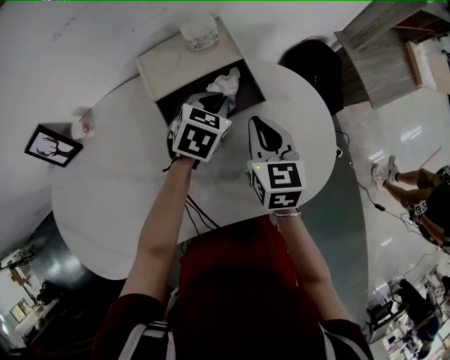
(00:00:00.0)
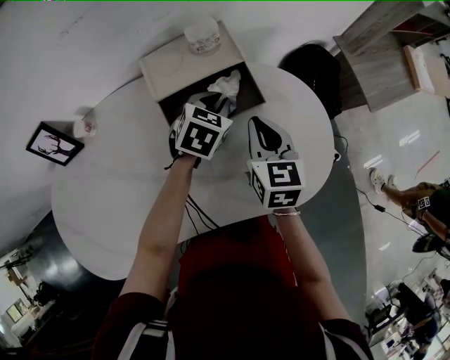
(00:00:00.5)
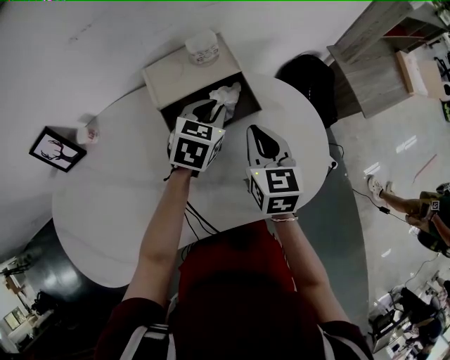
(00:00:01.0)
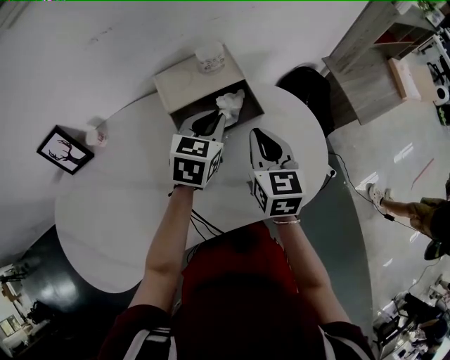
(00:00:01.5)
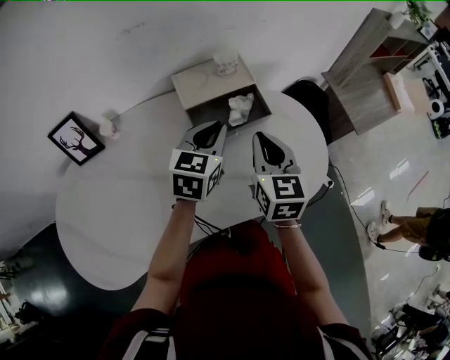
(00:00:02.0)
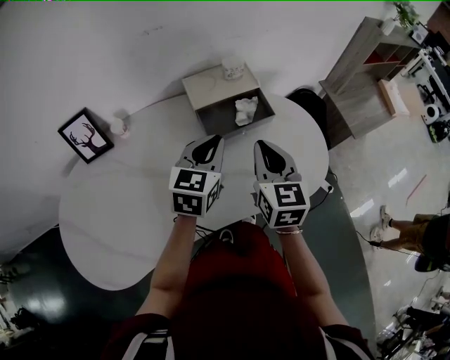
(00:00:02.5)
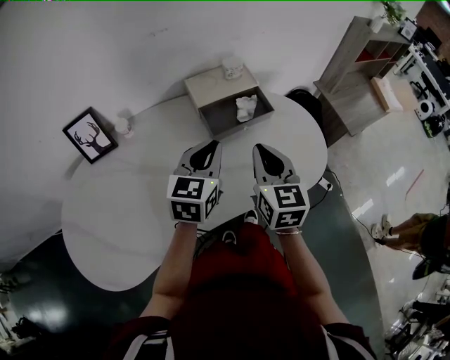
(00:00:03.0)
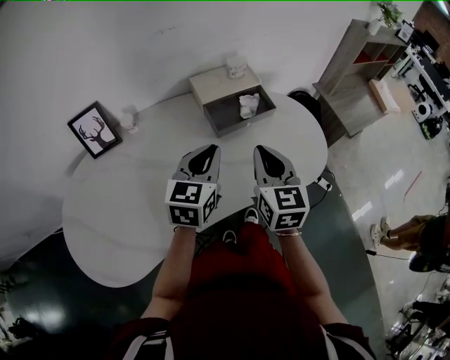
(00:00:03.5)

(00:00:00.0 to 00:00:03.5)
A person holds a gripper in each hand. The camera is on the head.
00:00:00.0 - 00:00:02.0: Both grippers travel together upward and backward, some 15 cm. The left gripper changes its angle by about 30 degrees.
00:00:02.0 - 00:00:03.5: The left gripper shifts some 15 cm backward and to the left, while the right gripper shifts approximately 10 cm backward.

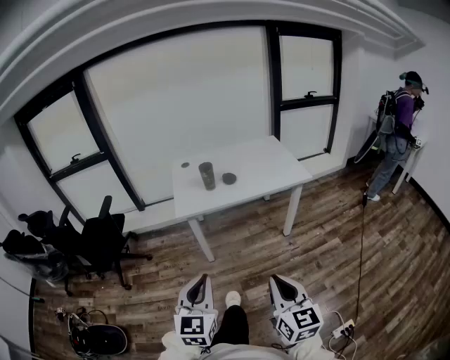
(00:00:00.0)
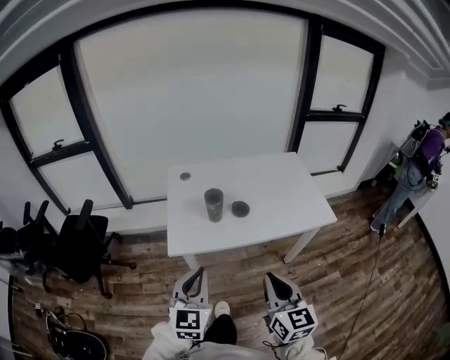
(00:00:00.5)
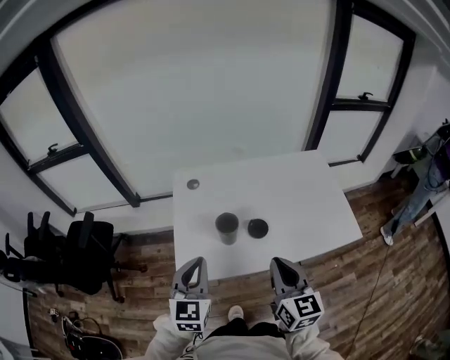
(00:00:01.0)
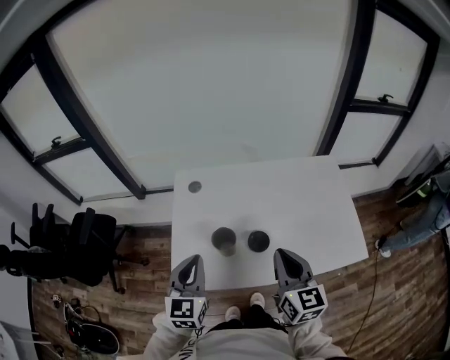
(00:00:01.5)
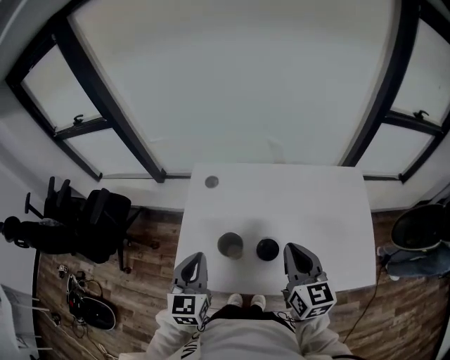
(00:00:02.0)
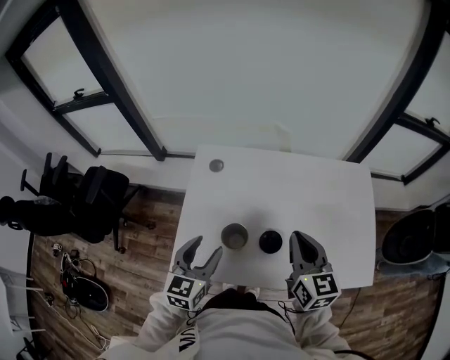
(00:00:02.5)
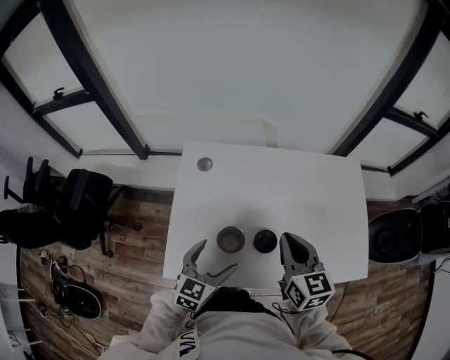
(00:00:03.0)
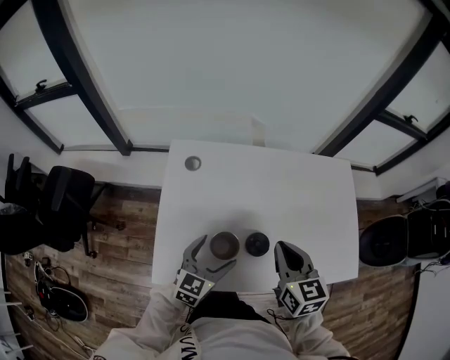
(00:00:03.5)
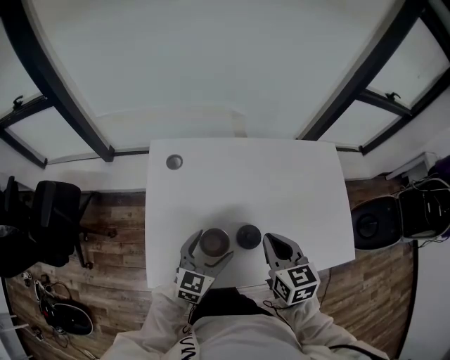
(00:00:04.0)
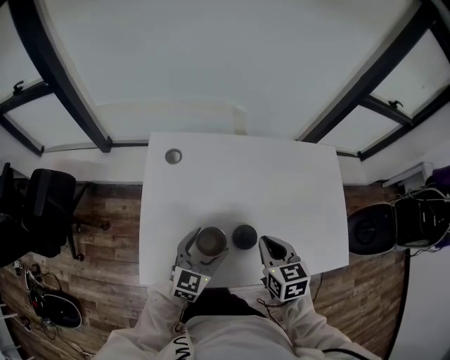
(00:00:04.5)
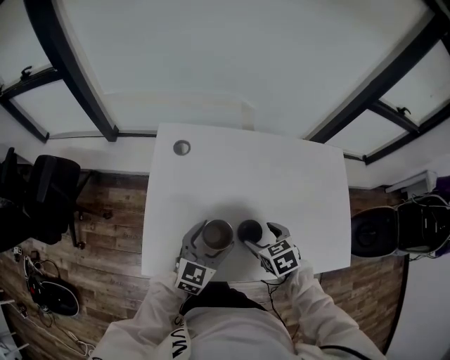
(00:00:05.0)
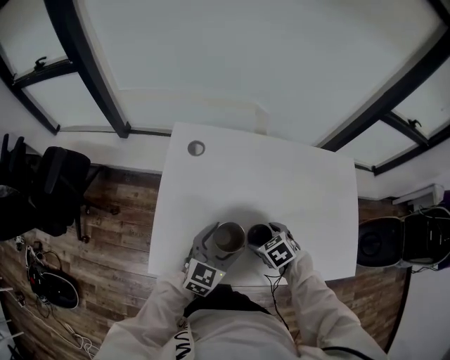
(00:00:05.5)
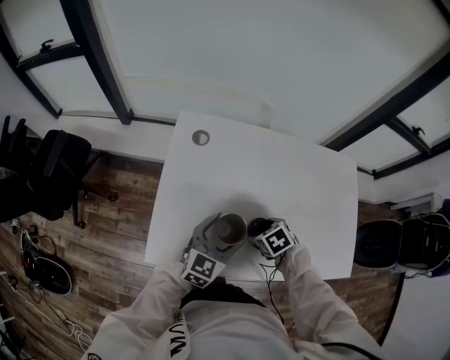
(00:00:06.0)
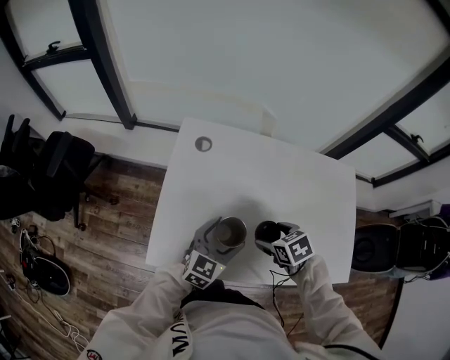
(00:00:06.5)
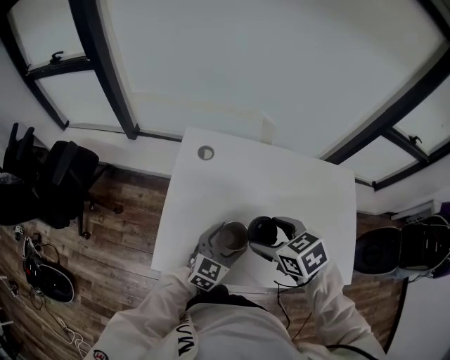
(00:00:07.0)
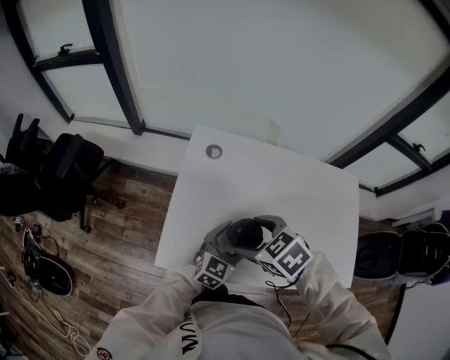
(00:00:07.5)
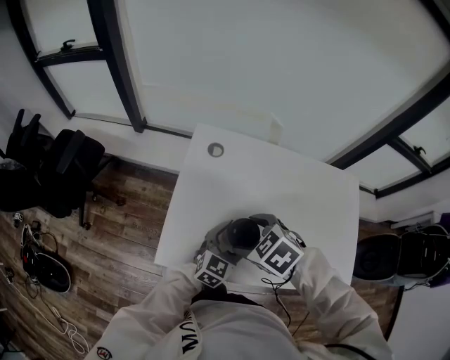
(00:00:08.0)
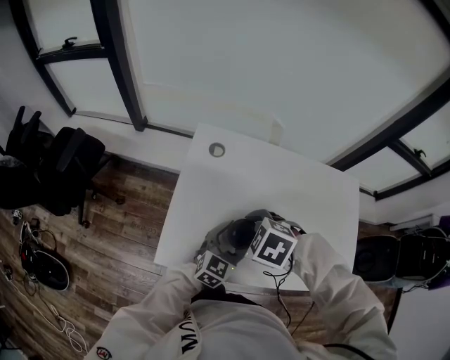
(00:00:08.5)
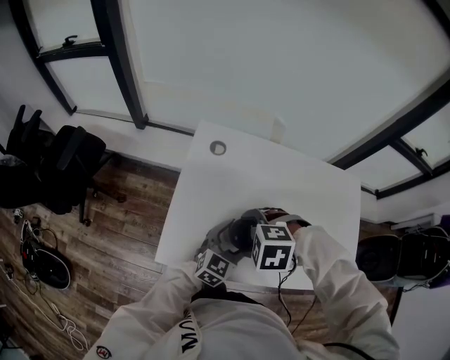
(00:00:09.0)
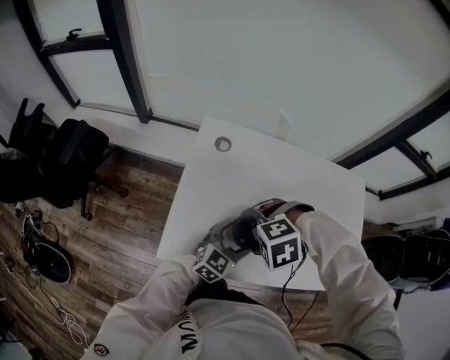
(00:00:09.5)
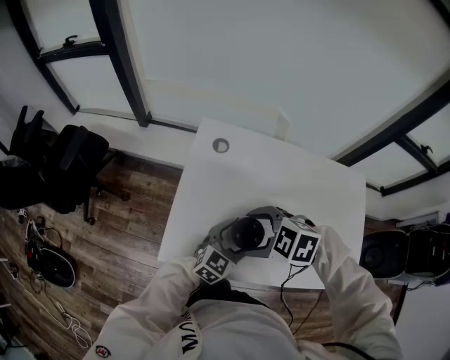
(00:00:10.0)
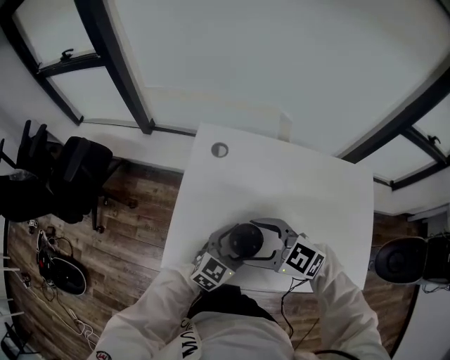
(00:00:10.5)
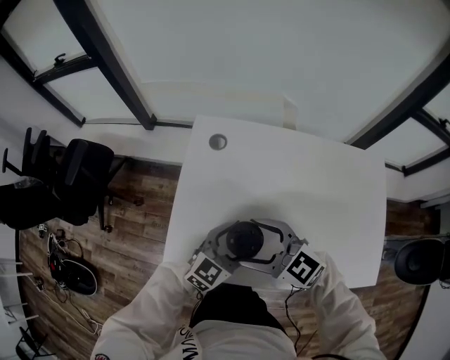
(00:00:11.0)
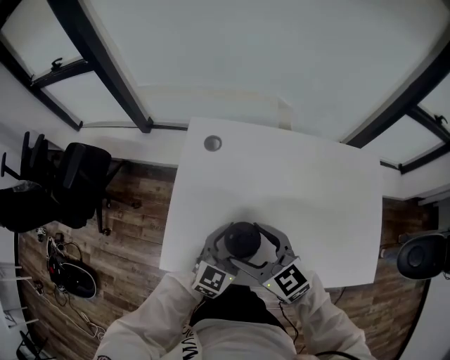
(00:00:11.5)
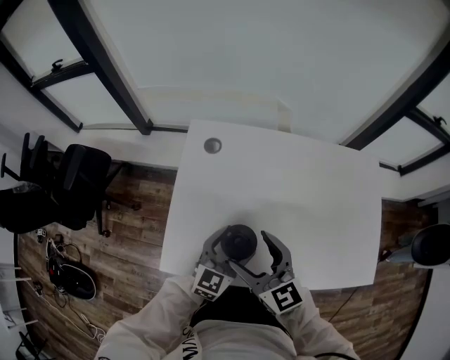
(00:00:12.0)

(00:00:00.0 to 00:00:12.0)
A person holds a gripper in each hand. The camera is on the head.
00:00:00.0 - 00:00:02.0: The two grippers travel together, forward, some 80 cm. The left gripper rotates approximately 20 degrees.
00:00:02.0 - 00:00:04.0: The left gripper travels downward, forward and to the right by about 20 cm, swivels approximately 30 degrees, and opens. The right gripper is displaced downward and to the left by approximately 10 cm, and changes its angle by roughly 20 degrees.
00:00:04.0 - 00:00:06.0: The right gripper shifts roughly 20 cm downward, tilts its fingers about 40 degrees downward, and opens up.
00:00:06.0 - 00:00:08.0: The right gripper travels upward by about 20 cm, and turns by about 30 degrees.
00:00:08.0 - 00:00:10.0: The right gripper swivels about 30 degrees.
00:00:10.0 - 00:00:12.0: The right gripper tips its fingers upward by about 50 degrees.

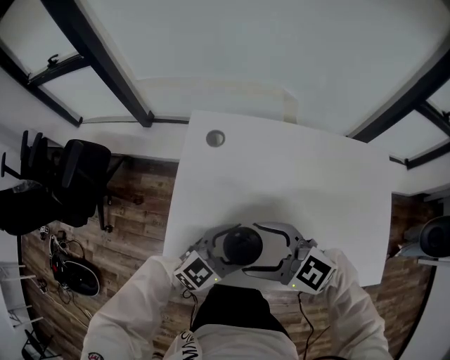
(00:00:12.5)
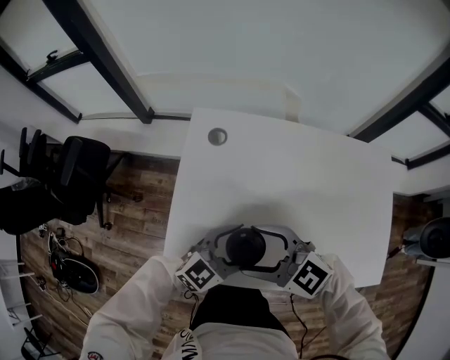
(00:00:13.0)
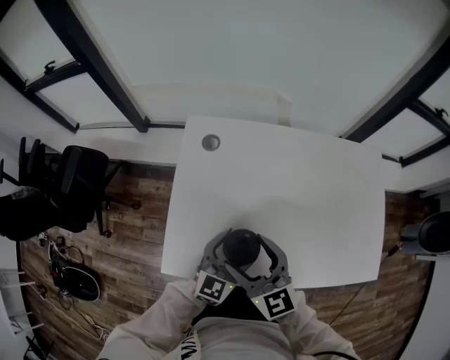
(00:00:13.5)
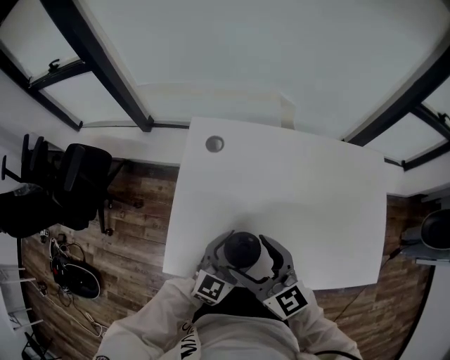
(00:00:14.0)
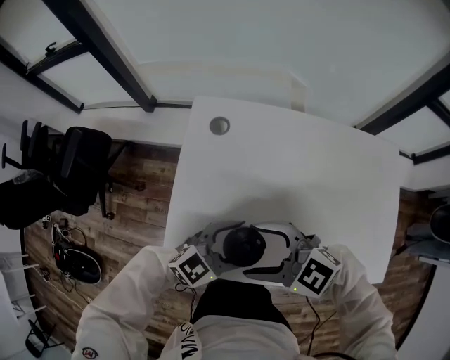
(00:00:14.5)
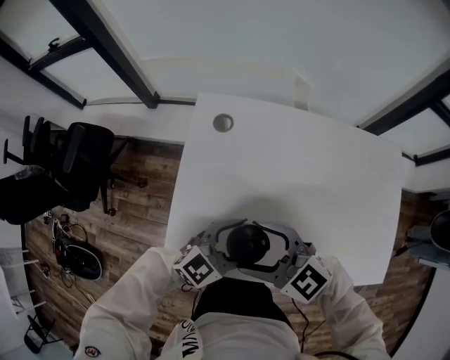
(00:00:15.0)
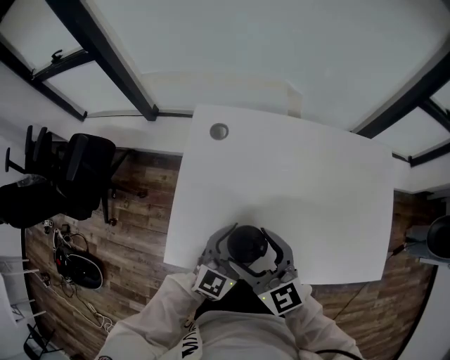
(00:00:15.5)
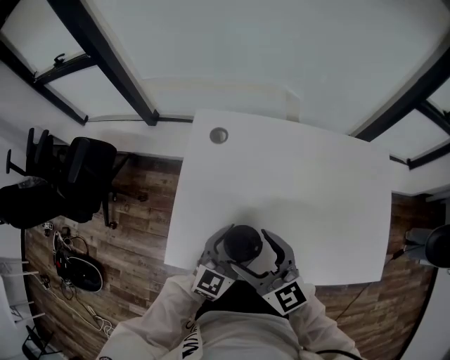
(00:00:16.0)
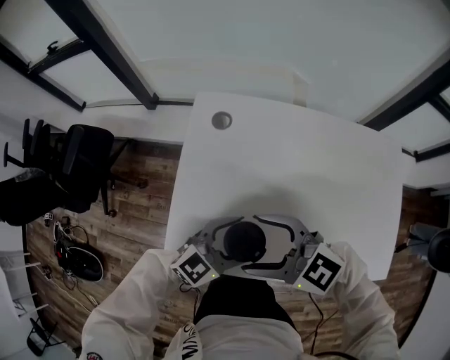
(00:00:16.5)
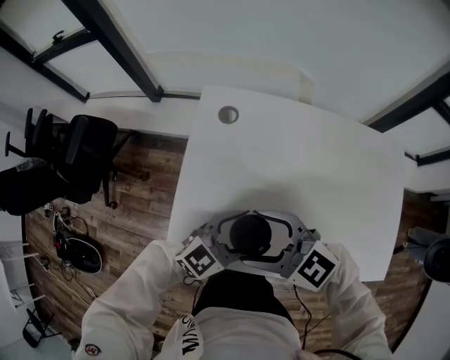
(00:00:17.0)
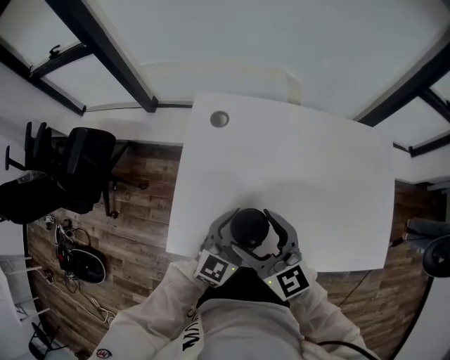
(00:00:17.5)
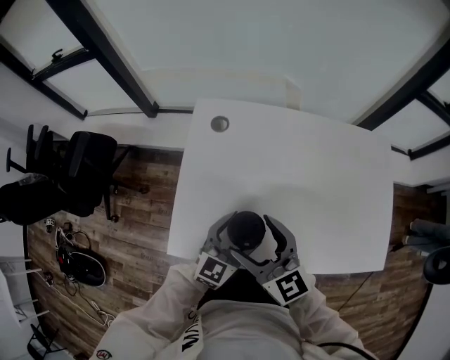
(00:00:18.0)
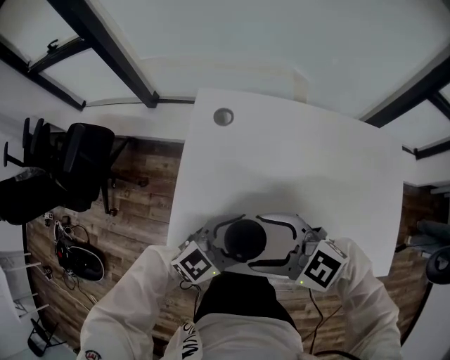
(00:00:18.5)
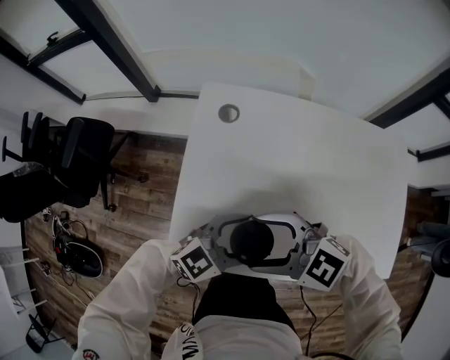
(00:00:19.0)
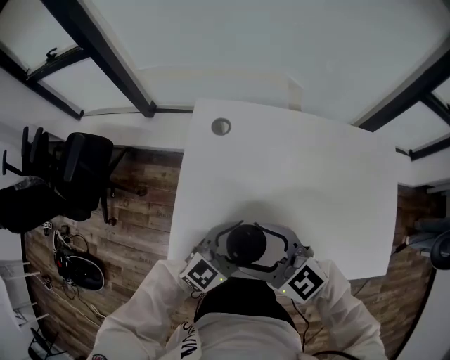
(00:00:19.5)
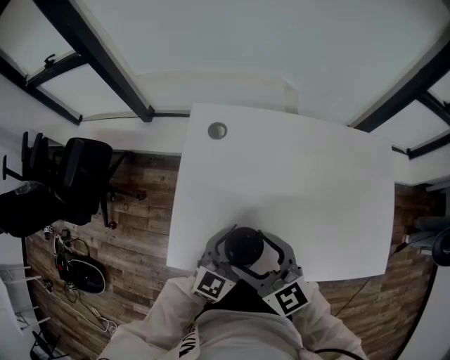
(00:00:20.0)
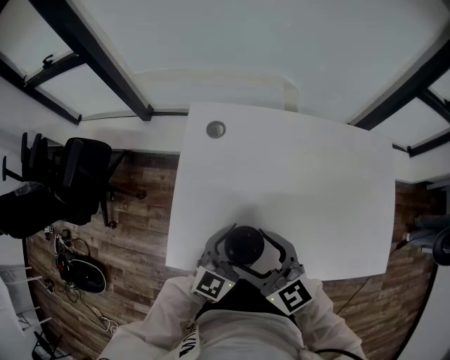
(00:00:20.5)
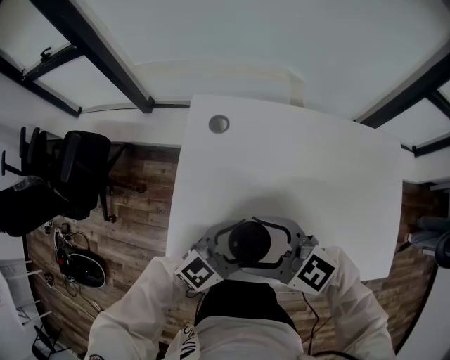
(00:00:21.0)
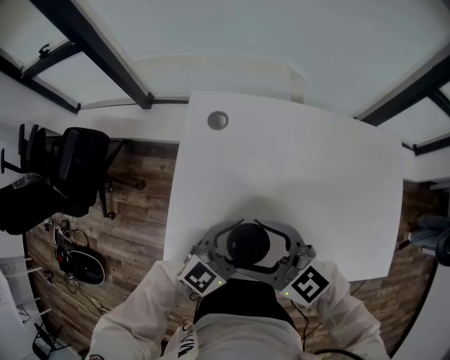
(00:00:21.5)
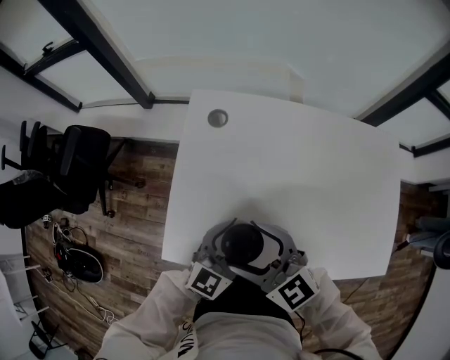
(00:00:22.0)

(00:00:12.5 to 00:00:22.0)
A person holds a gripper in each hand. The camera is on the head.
00:00:16.5 - 00:00:18.0: The right gripper turns by some 40 degrees, while the left gripper changes its angle by about 20 degrees.

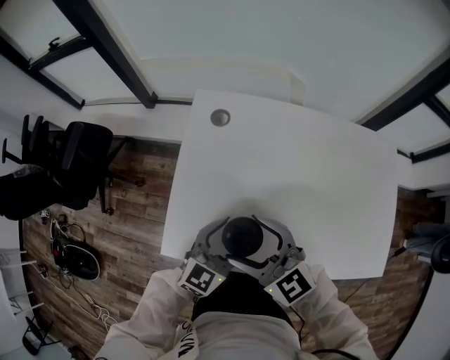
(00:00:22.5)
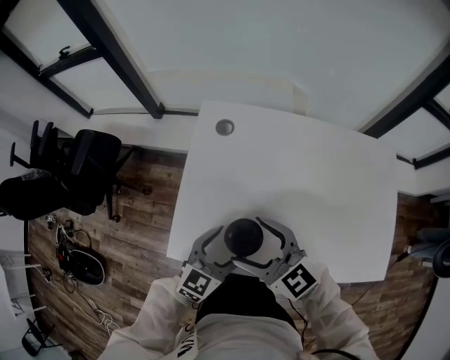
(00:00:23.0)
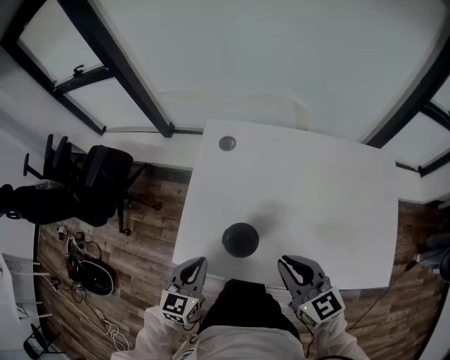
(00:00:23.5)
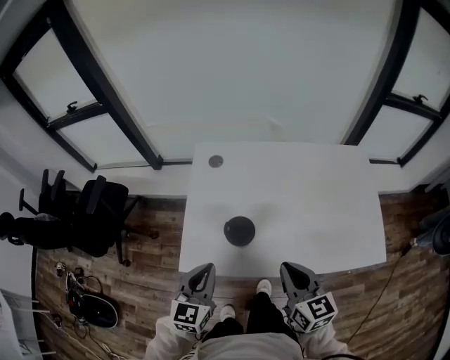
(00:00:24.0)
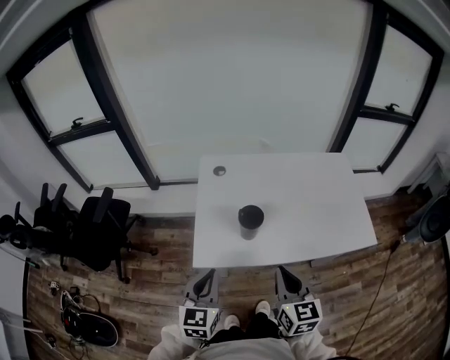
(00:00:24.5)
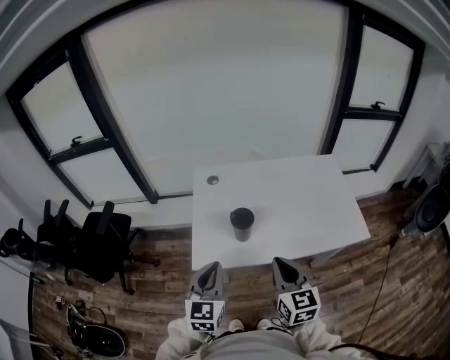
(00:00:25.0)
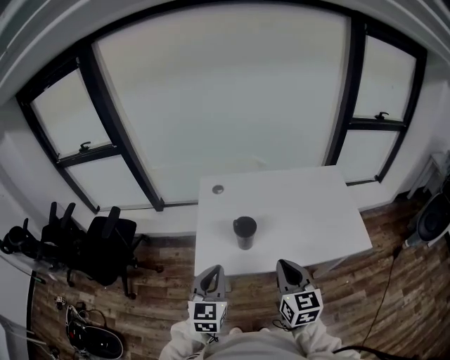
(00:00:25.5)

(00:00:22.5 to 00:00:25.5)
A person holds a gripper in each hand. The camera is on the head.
00:00:22.5 - 00:00:24.0: The right gripper goes approximately 20 cm backward and to the right, changes its angle by some 40 degrees, and closes up. Meanwhile the left gripper heads to the left, backward and upward, covering about 20 cm, and closes its fingers.
00:00:24.0 - 00:00:25.5: The two grippers go some 15 cm backward and upward.
